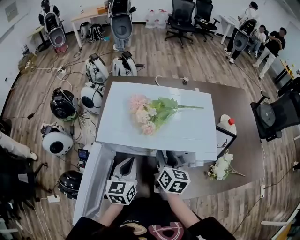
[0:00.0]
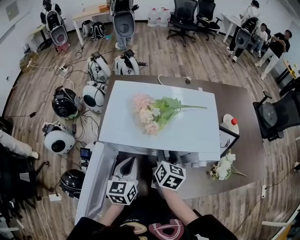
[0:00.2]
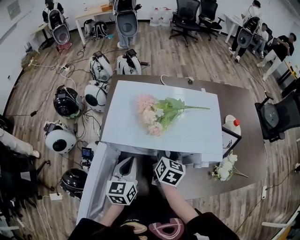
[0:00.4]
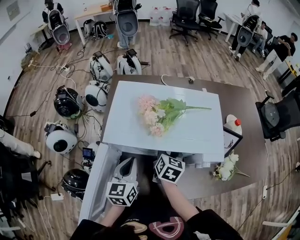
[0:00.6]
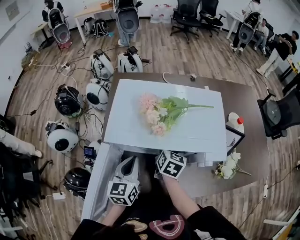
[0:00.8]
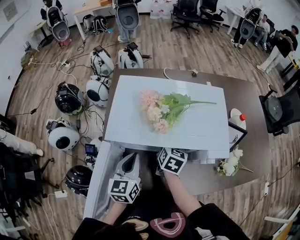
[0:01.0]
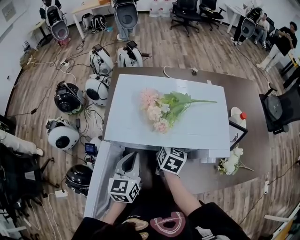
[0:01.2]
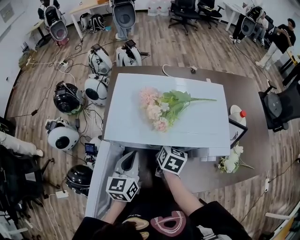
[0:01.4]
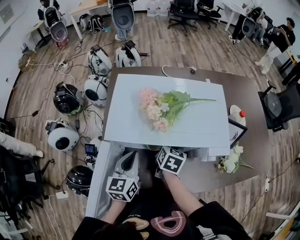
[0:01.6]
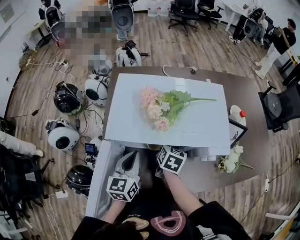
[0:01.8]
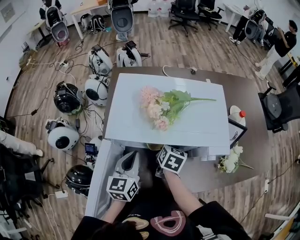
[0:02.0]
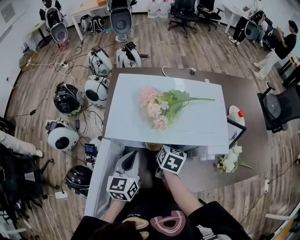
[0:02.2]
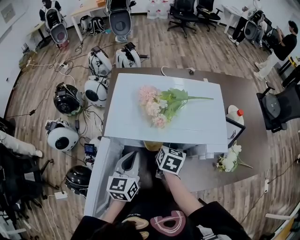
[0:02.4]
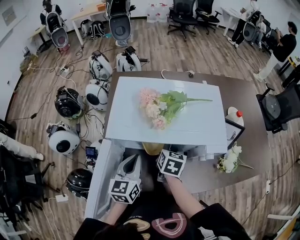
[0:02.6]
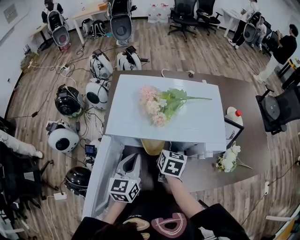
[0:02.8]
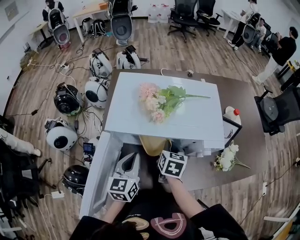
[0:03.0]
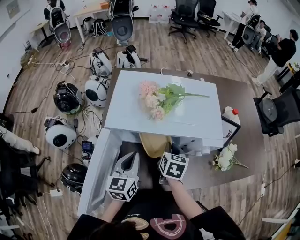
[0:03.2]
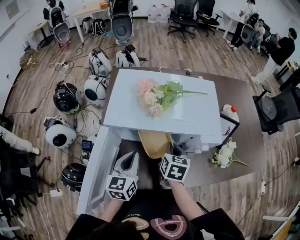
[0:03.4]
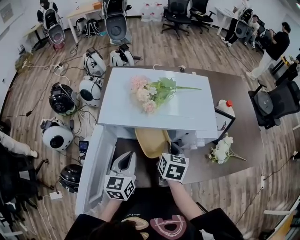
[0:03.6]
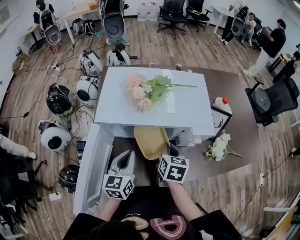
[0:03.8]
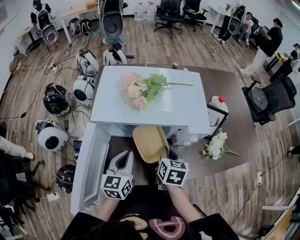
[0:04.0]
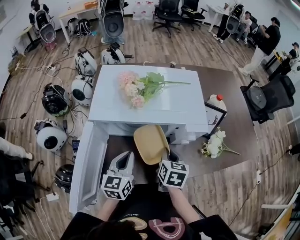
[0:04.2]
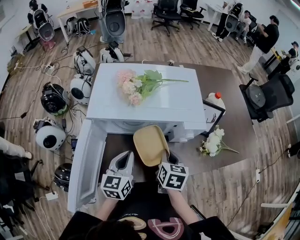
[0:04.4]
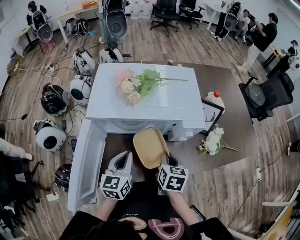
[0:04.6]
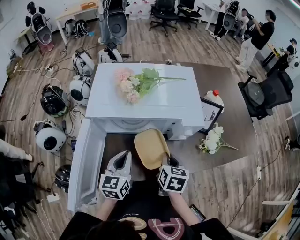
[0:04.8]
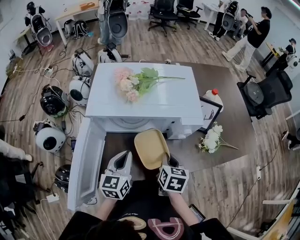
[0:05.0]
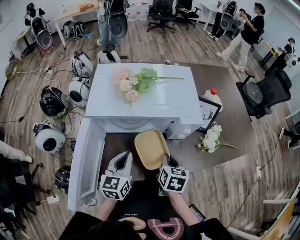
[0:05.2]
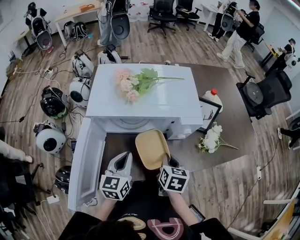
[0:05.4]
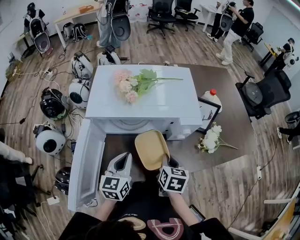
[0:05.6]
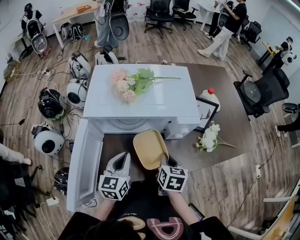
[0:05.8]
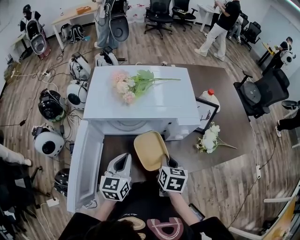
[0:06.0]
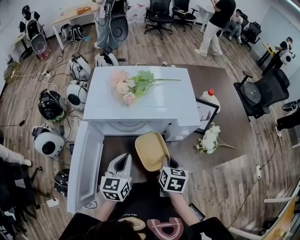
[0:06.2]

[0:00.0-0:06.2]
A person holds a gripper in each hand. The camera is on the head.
0:00.0 to 0:01.6: The right gripper goes about 5 cm downward, and closes its fingers.
0:01.6 to 0:03.2: The right gripper travels backward by approximately 5 cm.
0:03.2 to 0:04.6: The left gripper is displaced to the right by roughly 5 cm, while the right gripper is displaced backward and to the right by about 10 cm.
0:04.6 to 0:06.2: The grippers stay close to where they were, moving slightly.

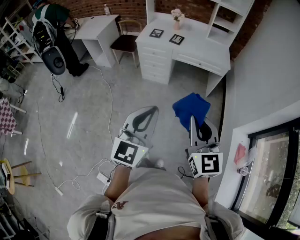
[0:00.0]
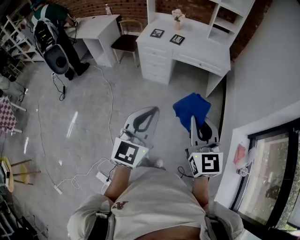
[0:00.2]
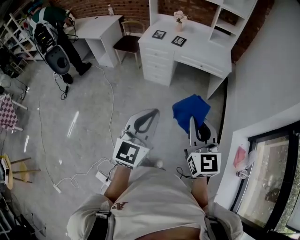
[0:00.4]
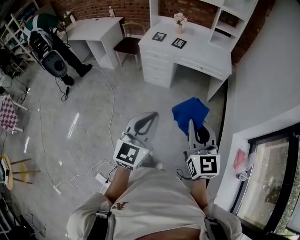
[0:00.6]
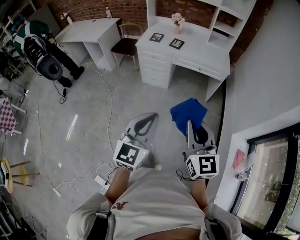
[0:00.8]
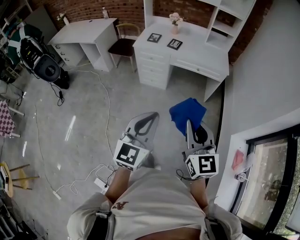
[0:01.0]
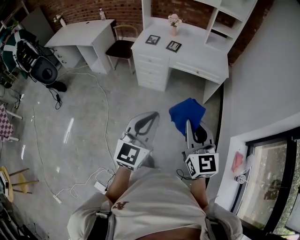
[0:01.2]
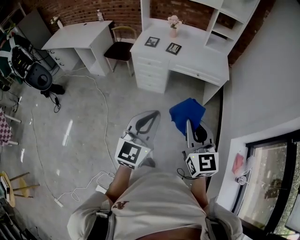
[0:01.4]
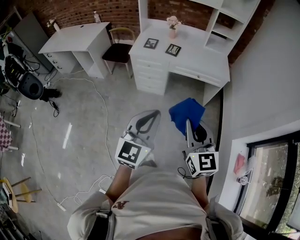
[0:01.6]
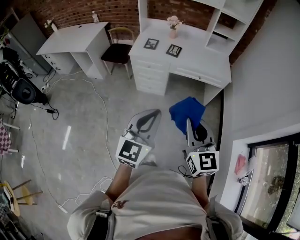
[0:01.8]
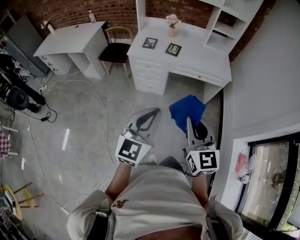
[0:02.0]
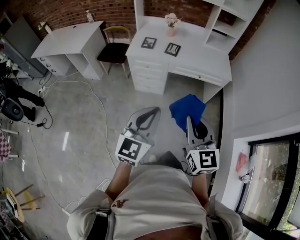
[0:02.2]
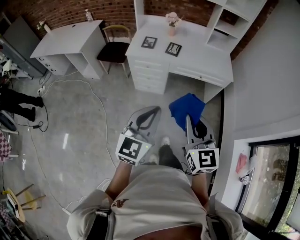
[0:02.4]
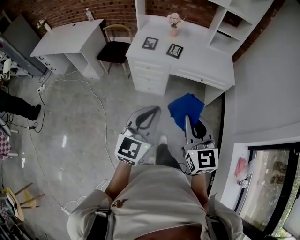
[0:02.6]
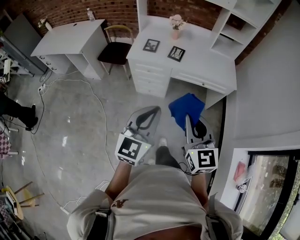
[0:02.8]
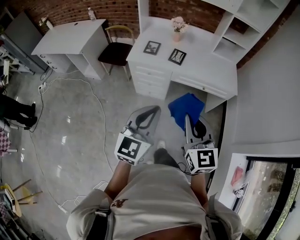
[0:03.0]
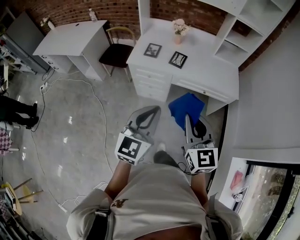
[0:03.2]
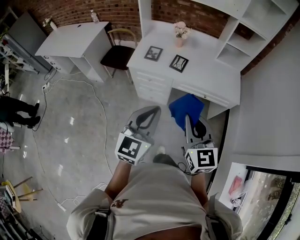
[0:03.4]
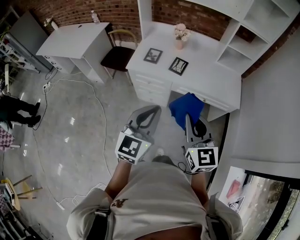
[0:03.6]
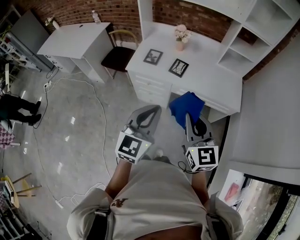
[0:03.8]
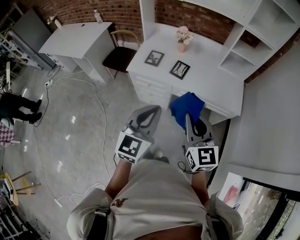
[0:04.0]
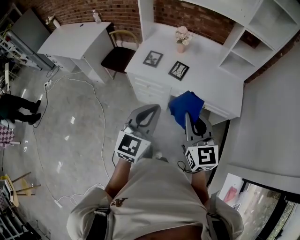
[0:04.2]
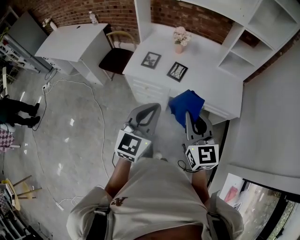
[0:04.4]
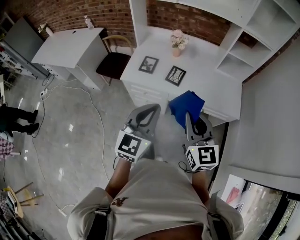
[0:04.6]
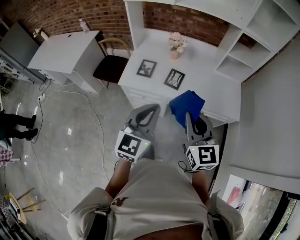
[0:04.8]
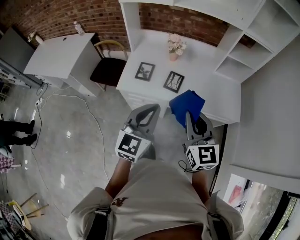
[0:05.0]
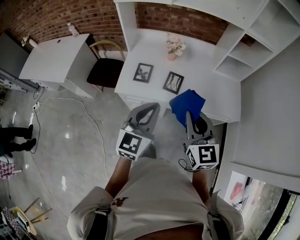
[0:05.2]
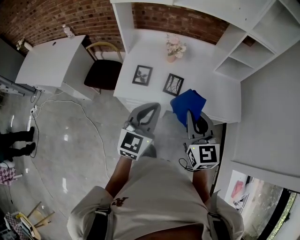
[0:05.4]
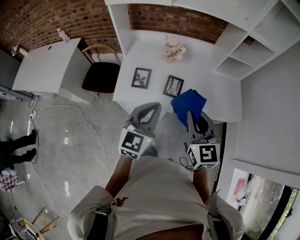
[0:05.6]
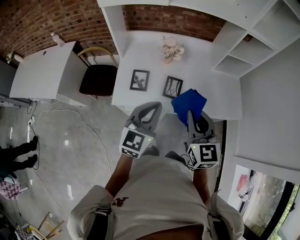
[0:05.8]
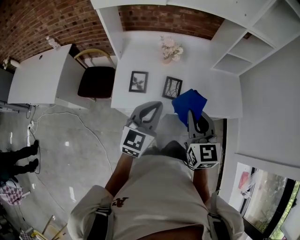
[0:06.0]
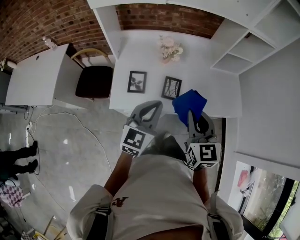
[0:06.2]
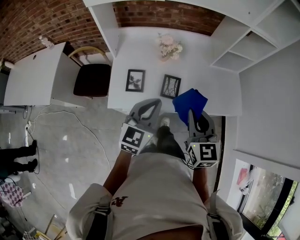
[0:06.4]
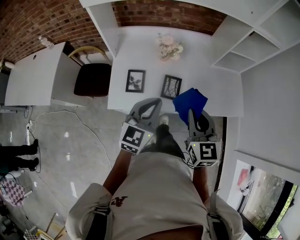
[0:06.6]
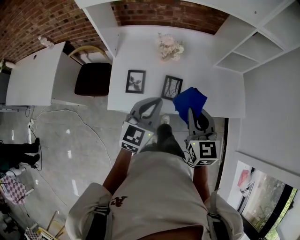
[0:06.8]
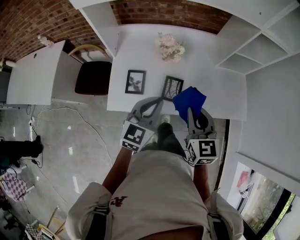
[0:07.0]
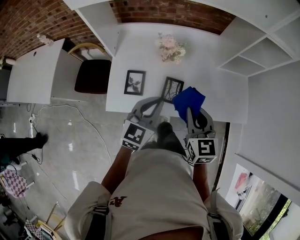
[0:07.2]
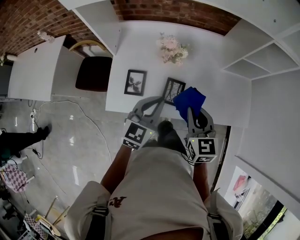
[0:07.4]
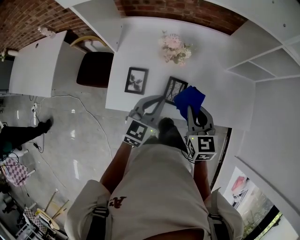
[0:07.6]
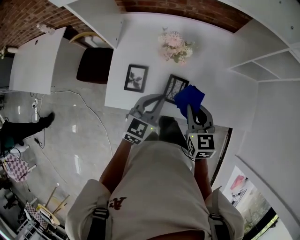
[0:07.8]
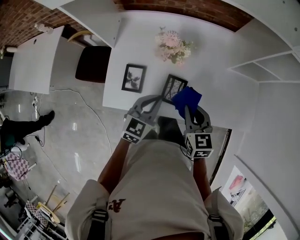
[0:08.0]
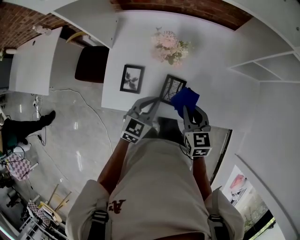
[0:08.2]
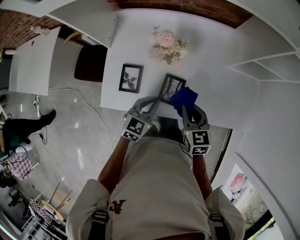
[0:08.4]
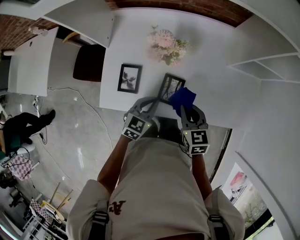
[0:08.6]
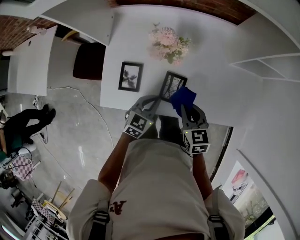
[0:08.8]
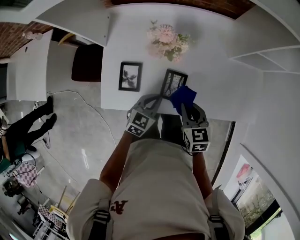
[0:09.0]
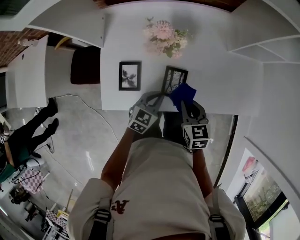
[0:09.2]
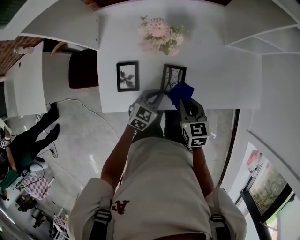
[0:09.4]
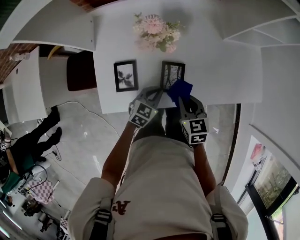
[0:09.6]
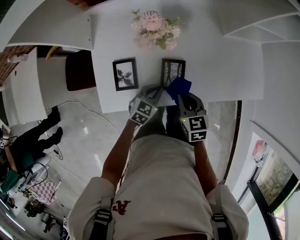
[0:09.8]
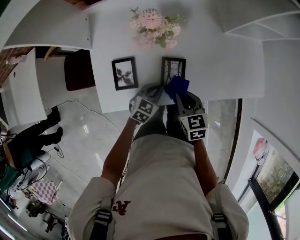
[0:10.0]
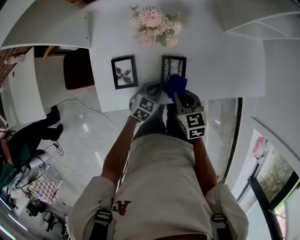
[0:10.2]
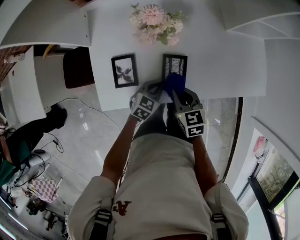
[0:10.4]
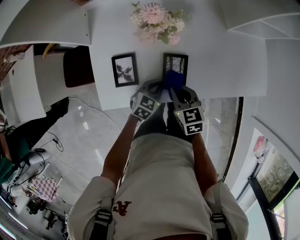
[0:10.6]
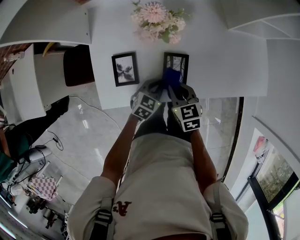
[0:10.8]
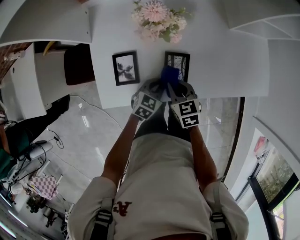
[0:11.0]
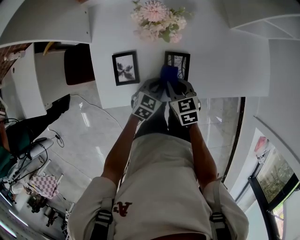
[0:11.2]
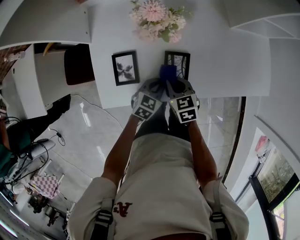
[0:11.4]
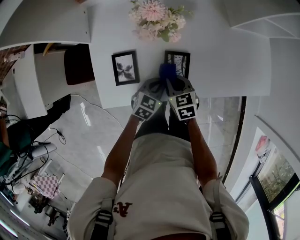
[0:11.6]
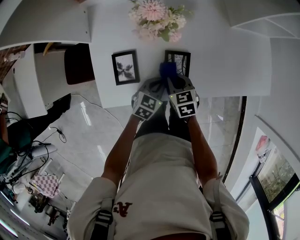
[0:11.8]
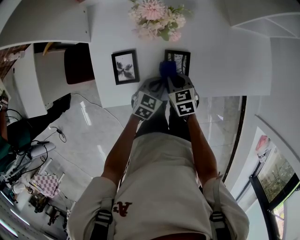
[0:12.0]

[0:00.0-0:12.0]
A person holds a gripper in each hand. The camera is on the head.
0:00.0 to 0:01.6: Both grippers move forward, some 15 cm.
0:01.6 to 0:03.0: Both grippers move forward, roughly 20 cm.
0:03.0 to 0:04.4: Both grippers travel together forward, roughly 15 cm.
0:04.4 to 0:06.0: Both grippers travel together forward, about 20 cm.
0:06.0 to 0:07.6: The grippers both shift forward and downward by approximately 15 cm.
0:07.6 to 0:09.0: Both grippers travel together downward, about 15 cm.
0:09.0 to 0:10.4: Both grippers move downward, about 5 cm.
0:10.4 to 0:12.0: The right gripper goes approximately 10 cm downward.

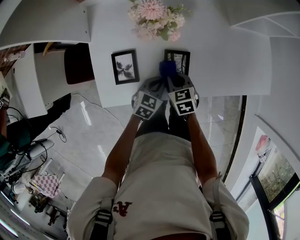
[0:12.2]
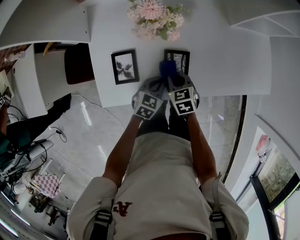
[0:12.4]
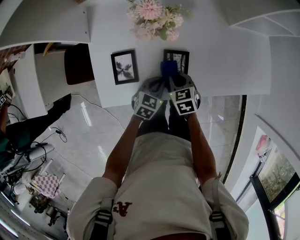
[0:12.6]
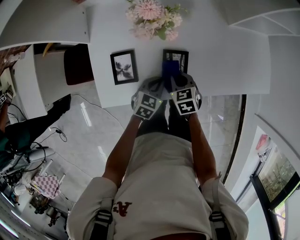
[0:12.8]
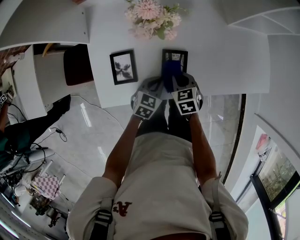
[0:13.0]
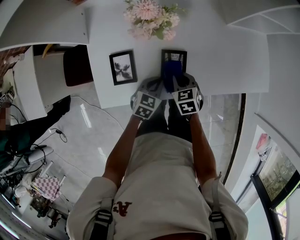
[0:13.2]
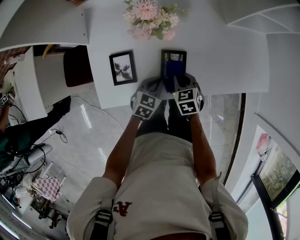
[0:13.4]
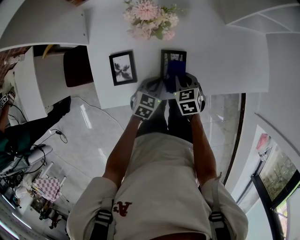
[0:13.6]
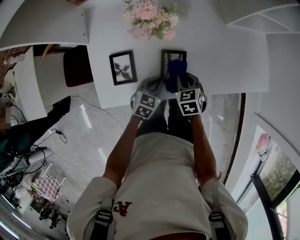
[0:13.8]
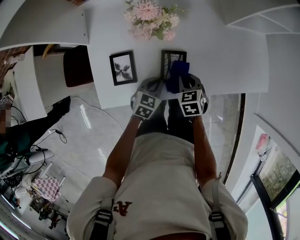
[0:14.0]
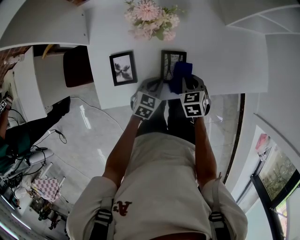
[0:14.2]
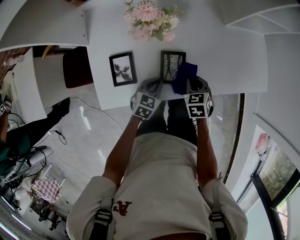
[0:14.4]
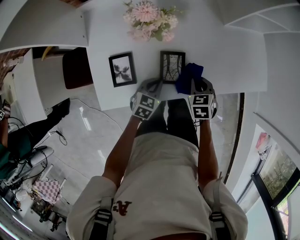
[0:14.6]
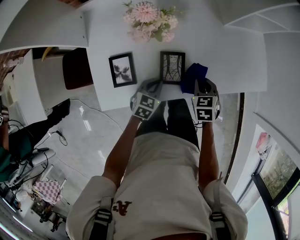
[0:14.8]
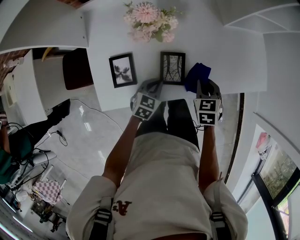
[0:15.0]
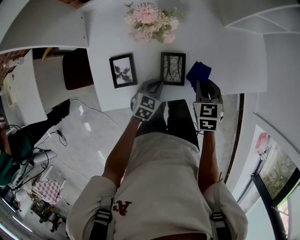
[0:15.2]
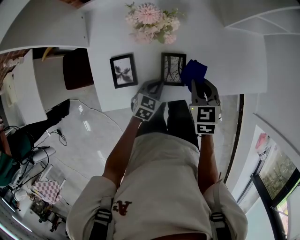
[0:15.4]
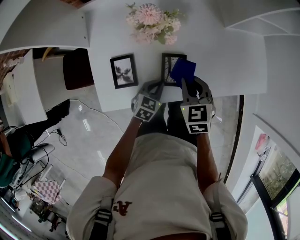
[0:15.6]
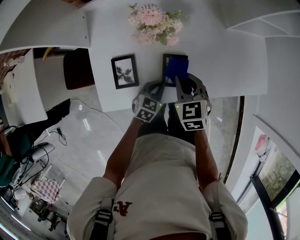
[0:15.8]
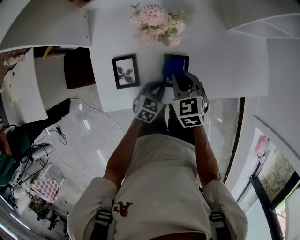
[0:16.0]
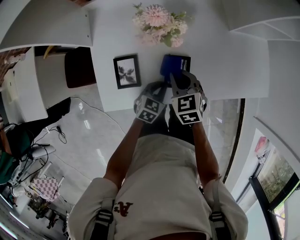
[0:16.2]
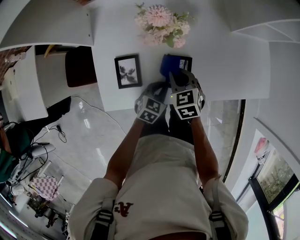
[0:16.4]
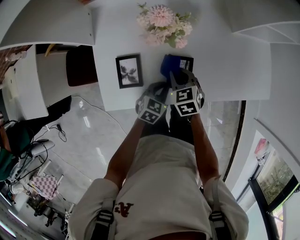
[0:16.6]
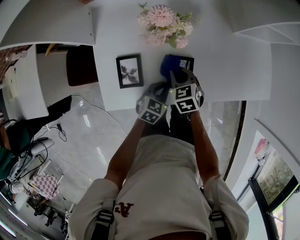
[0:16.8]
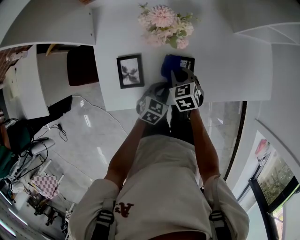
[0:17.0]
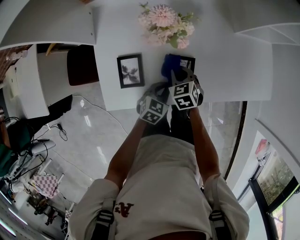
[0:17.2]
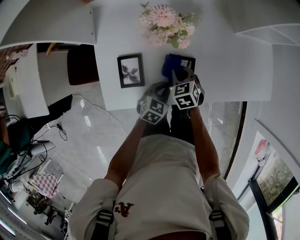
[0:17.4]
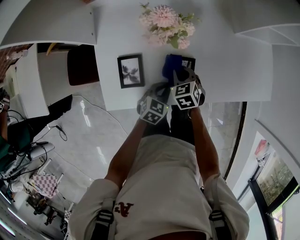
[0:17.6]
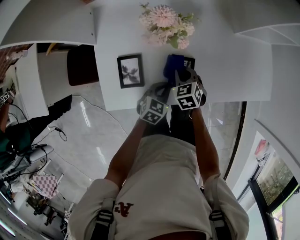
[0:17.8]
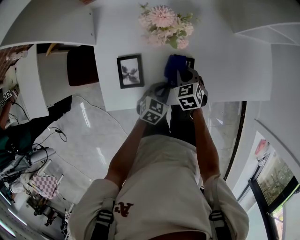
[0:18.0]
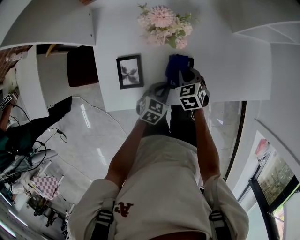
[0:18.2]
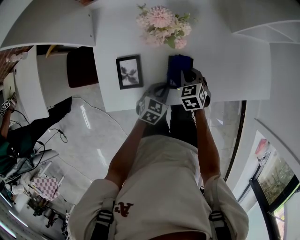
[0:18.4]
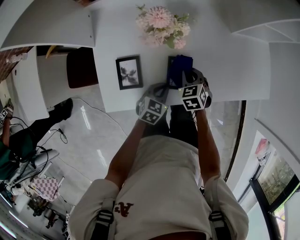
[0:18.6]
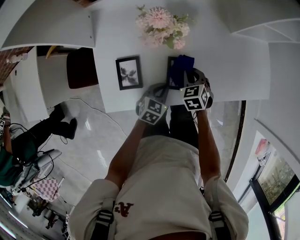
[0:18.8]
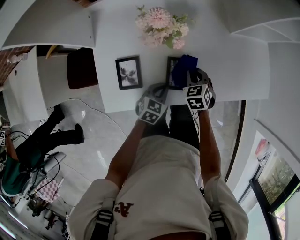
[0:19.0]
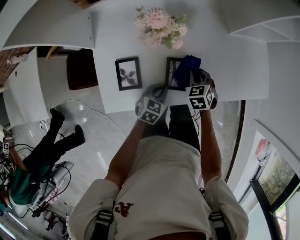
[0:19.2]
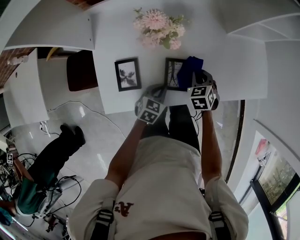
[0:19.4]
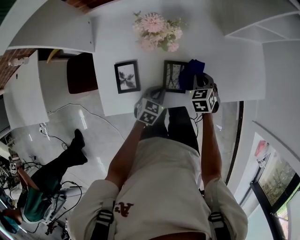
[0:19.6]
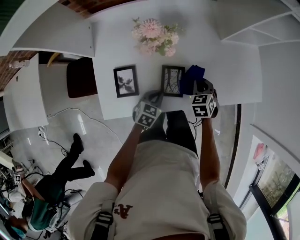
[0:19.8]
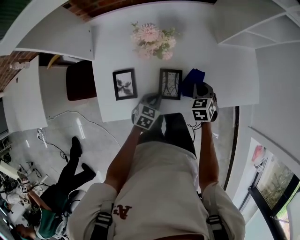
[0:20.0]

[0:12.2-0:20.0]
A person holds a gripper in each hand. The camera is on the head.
0:12.2 to 0:13.8: The right gripper travels to the right by about 5 cm.
0:13.8 to 0:15.4: The right gripper moves upward, about 10 cm.
0:15.4 to 0:16.8: The right gripper moves to the left and downward, roughly 15 cm.
0:16.8 to 0:18.4: The right gripper moves about 5 cm.
0:18.4 to 0:20.0: The right gripper is displaced to the right by approximately 10 cm.
